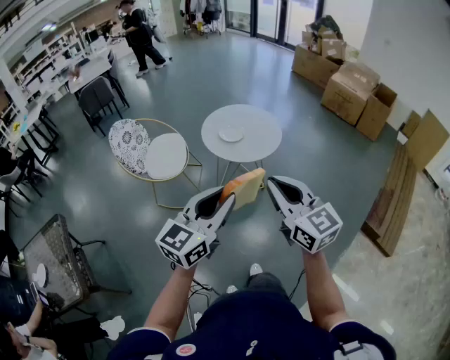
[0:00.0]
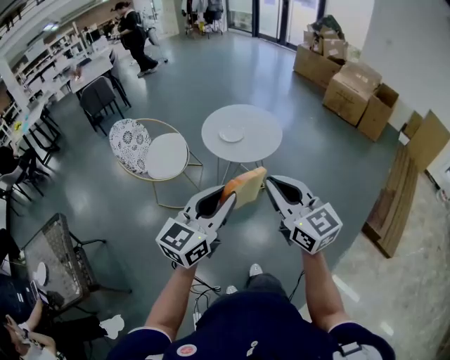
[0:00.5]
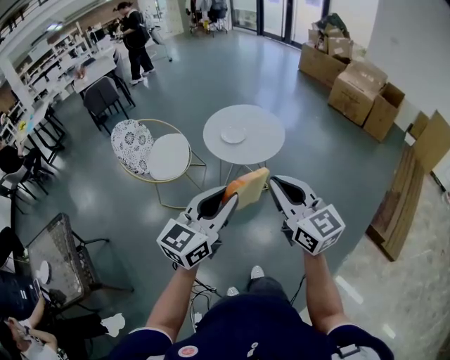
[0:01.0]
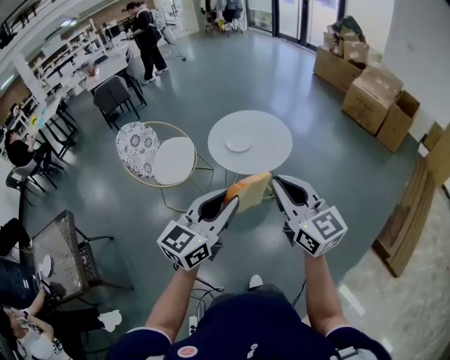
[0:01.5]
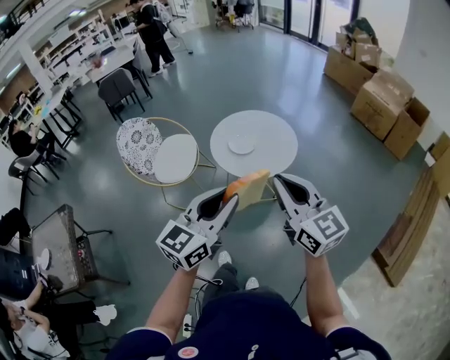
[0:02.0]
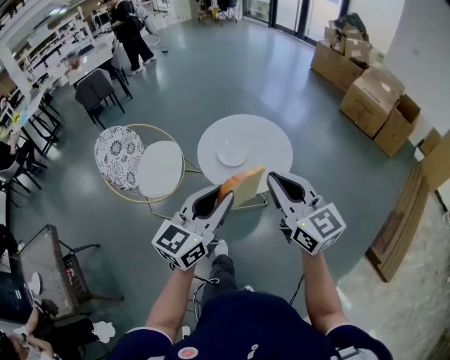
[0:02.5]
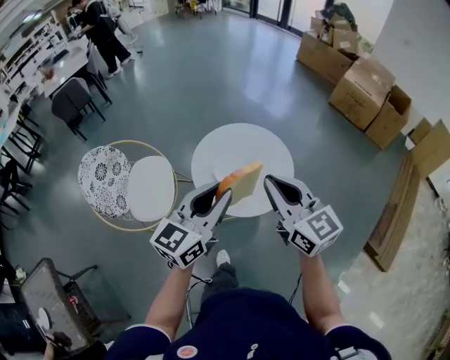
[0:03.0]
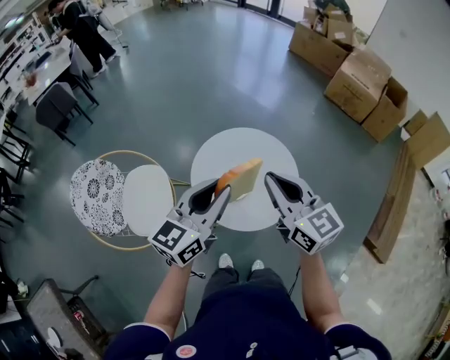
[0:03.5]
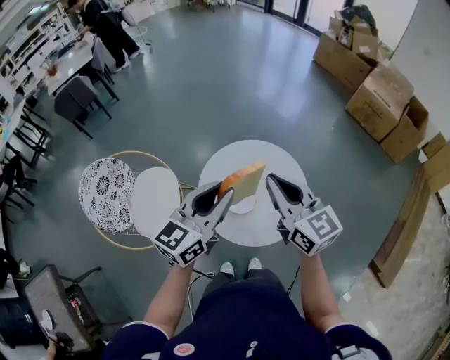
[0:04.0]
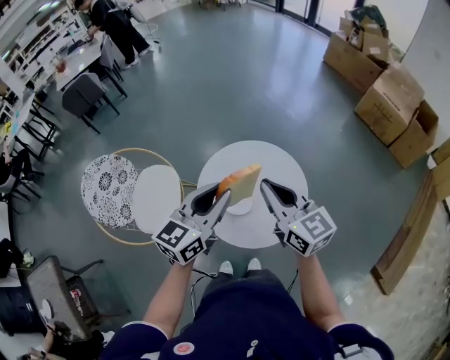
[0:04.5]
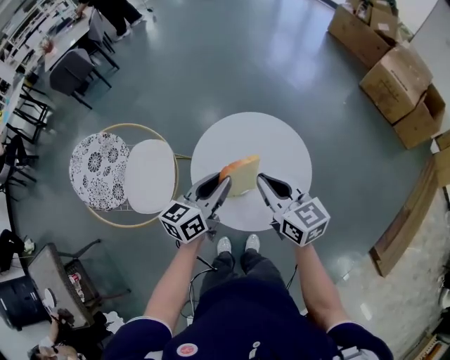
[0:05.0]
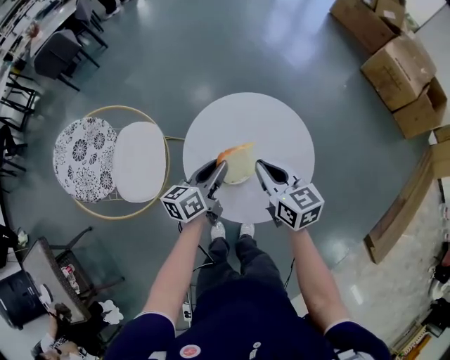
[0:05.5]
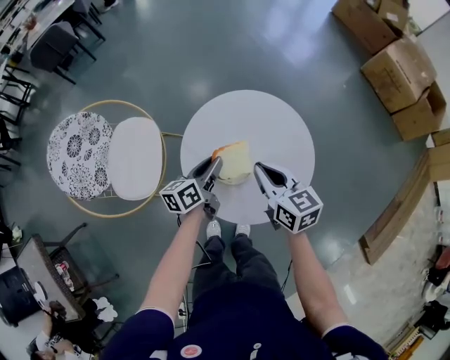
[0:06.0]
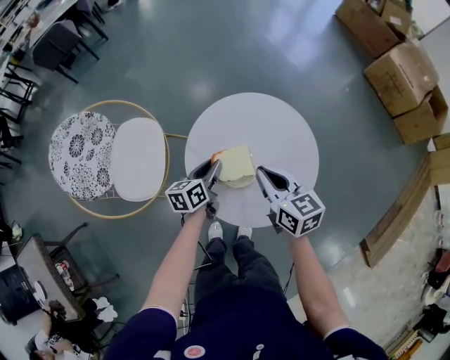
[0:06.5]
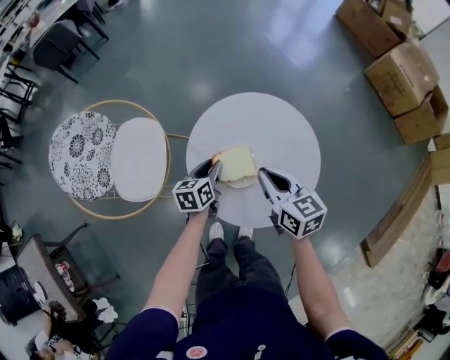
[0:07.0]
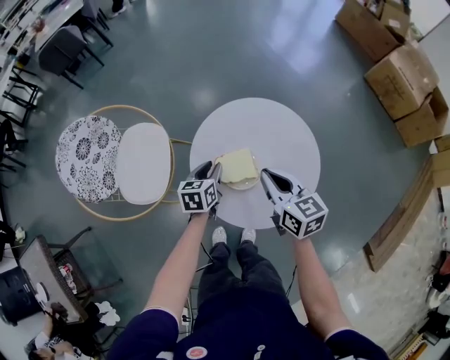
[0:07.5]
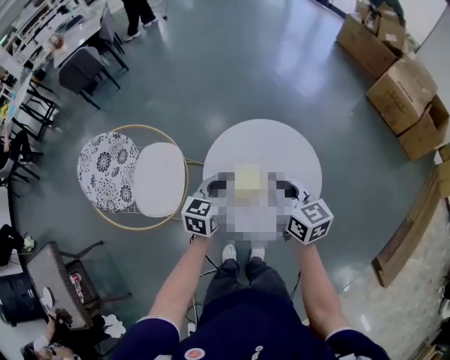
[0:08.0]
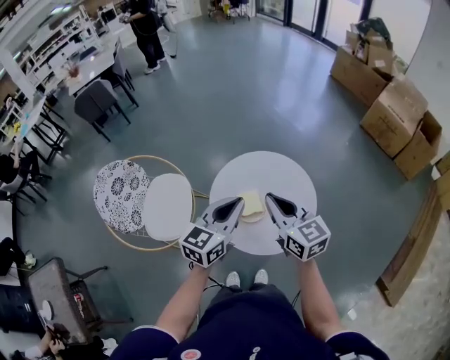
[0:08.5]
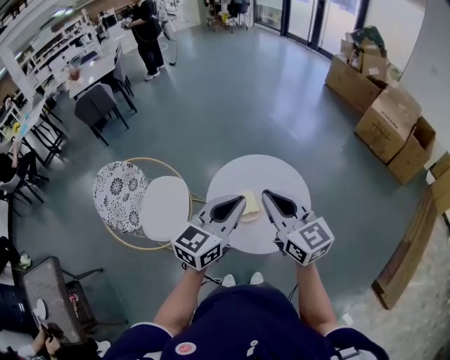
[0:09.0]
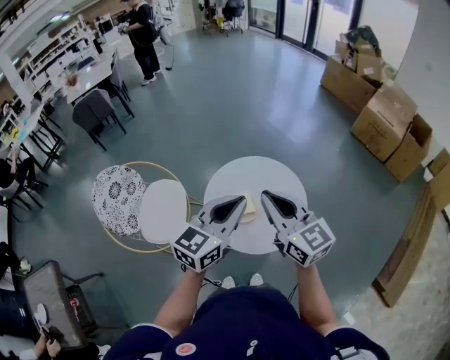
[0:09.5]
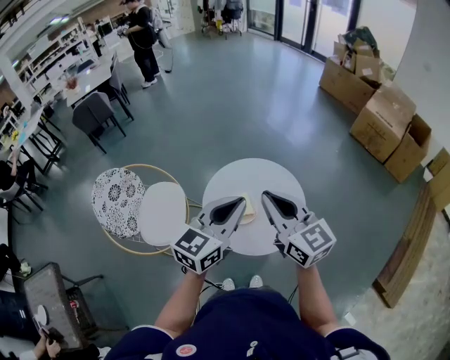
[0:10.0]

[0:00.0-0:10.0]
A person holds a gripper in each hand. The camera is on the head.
0:00.0 to 0:02.0: The two grippers go some 15 cm forward and to the right.
0:02.0 to 0:04.0: The two grippers go about 40 cm forward.
0:04.0 to 0:06.0: The two grippers go some 25 cm downward. The left gripper rotates some 40 degrees; the right gripper turns by some 30 degrees.
0:06.0 to 0:08.0: Both grippers travel together upward, approximately 10 cm. The left gripper swivels about 30 degrees.
0:08.0 to 0:10.0: Both grippers move upward and backward, some 20 cm. The left gripper rotates about 20 degrees; the right gripper swivels roughly 20 degrees.

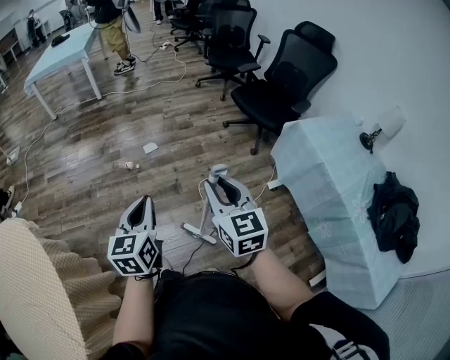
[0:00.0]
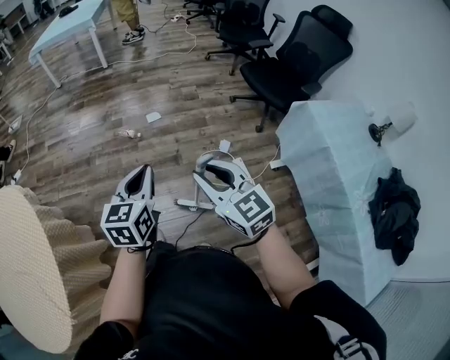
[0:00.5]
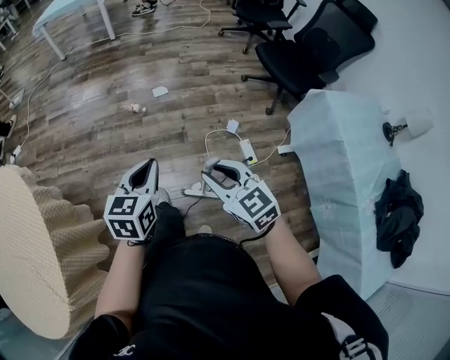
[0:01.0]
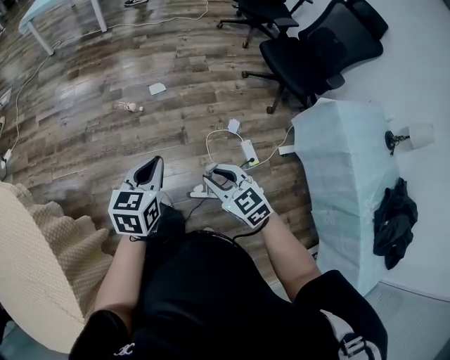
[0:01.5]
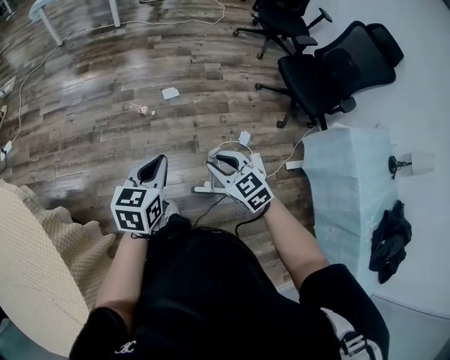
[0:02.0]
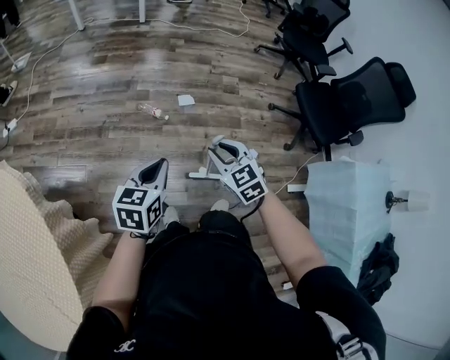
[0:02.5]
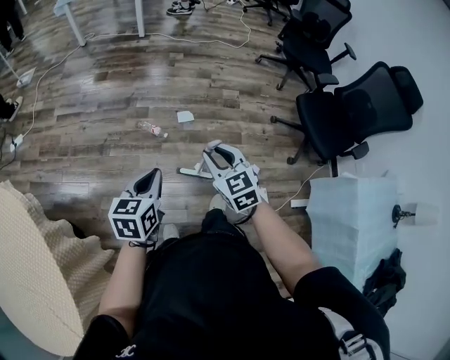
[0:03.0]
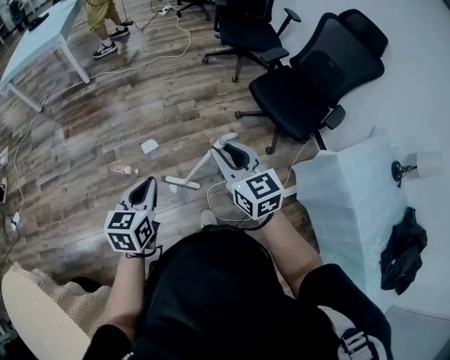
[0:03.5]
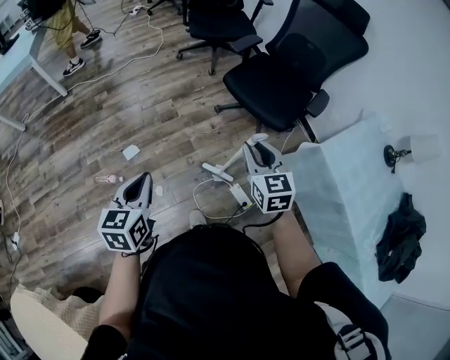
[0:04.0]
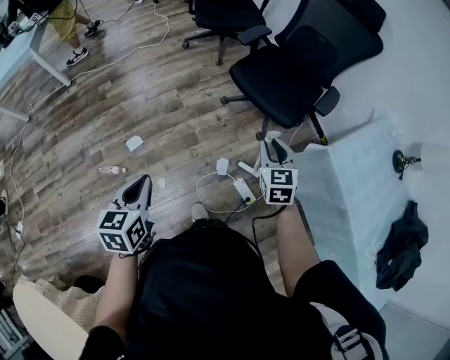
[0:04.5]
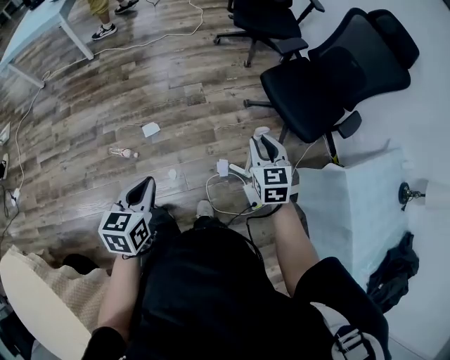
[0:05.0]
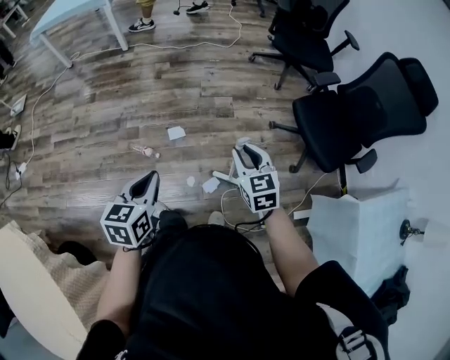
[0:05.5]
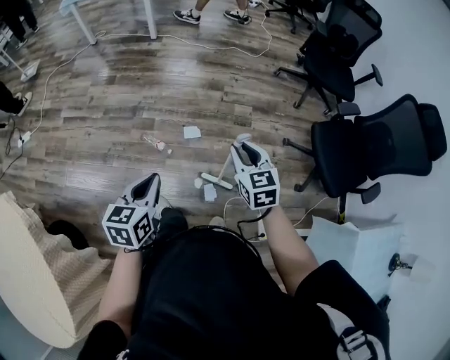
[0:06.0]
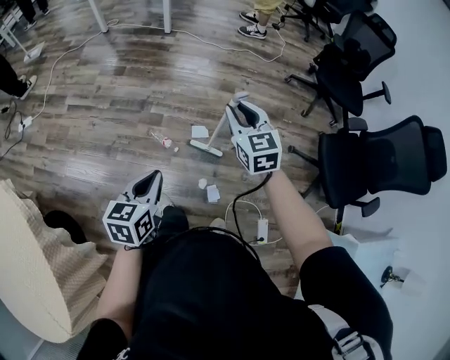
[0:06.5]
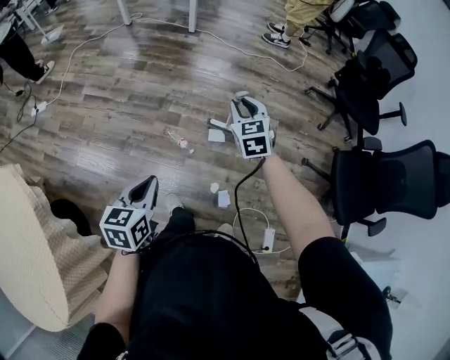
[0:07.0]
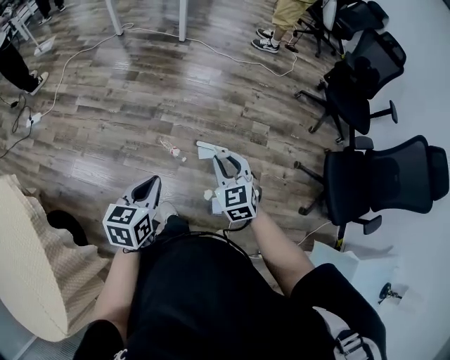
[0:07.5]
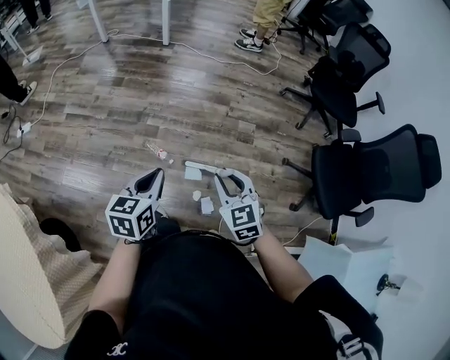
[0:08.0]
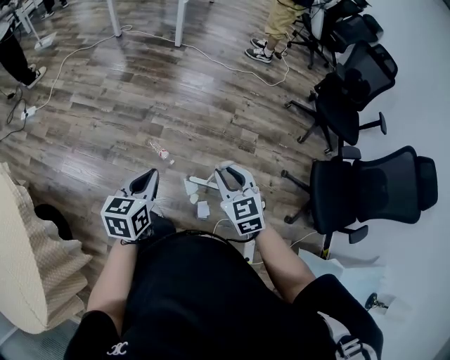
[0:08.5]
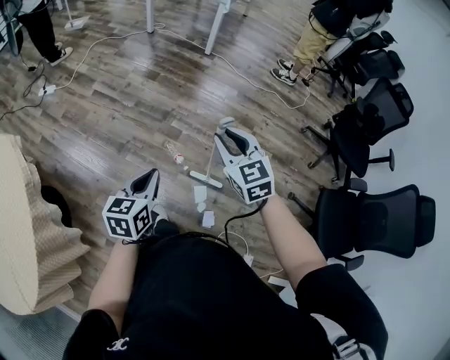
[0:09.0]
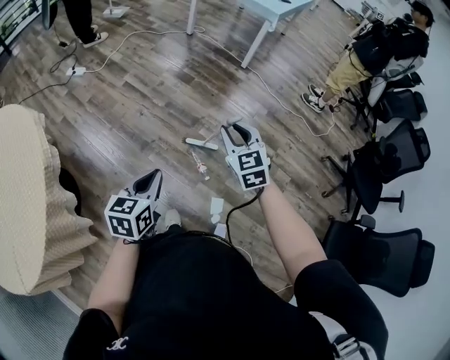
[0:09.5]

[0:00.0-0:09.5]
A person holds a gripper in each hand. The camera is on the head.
0:00.0 to 0:02.0: The right gripper goes roughly 30 cm downward, forward and to the left, and swivels some 40 degrees, while the left gripper is displaced forward, downward and to the left by approximately 25 cm.
0:02.0 to 0:04.0: The left gripper changes place by approximately 35 cm; the right gripper ends up approximately 50 cm from where it was, and swivels about 50 degrees.
0:04.0 to 0:05.5: The right gripper changes place by about 30 cm, and changes its angle by approximately 30 degrees. The left gripper ends up approximately 20 cm from where it was.
0:05.5 to 0:07.5: The two grippers go approximately 20 cm to the left. The right gripper changes its angle by about 30 degrees.
0:07.5 to 0:09.5: The left gripper goes approximately 15 cm to the left, and turns by some 20 degrees. The right gripper heads to the left and forward, covering about 25 cm, and rotates approximately 20 degrees.

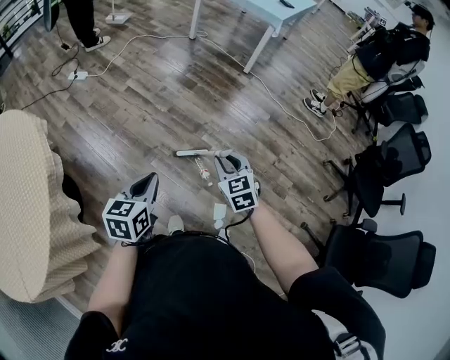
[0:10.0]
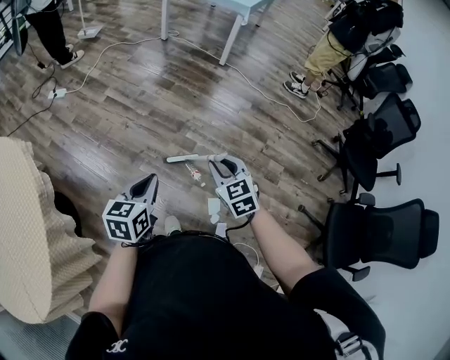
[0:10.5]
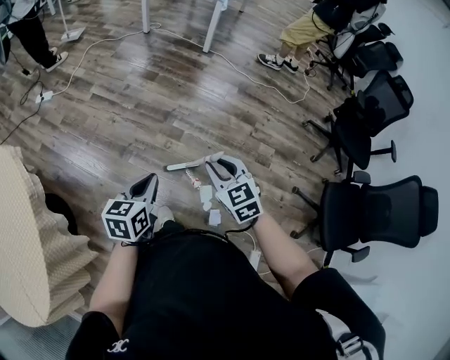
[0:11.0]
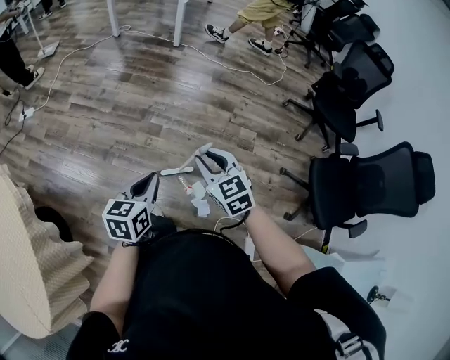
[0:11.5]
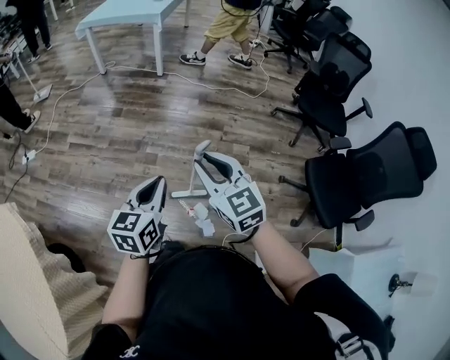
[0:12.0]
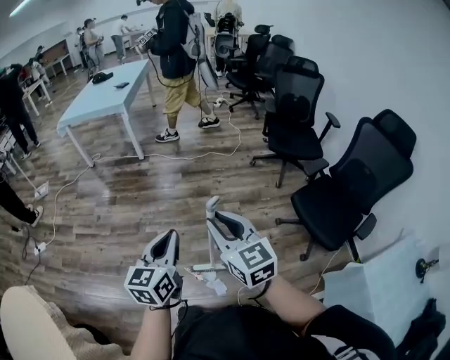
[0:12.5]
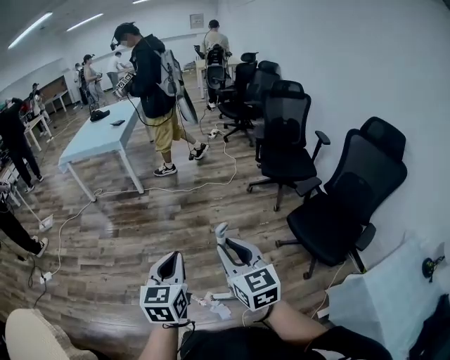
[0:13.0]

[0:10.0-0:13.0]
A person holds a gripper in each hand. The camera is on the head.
0:10.0 to 0:11.5: The right gripper goes approximately 20 cm to the right and backward. The left gripper travels to the right by approximately 20 cm, and rotates roughly 20 degrees.
0:11.5 to 0:13.0: The two grippers go some 35 cm to the right and upward. The right gripper rotates approximately 40 degrees, while the left gripper rotates approximately 30 degrees.

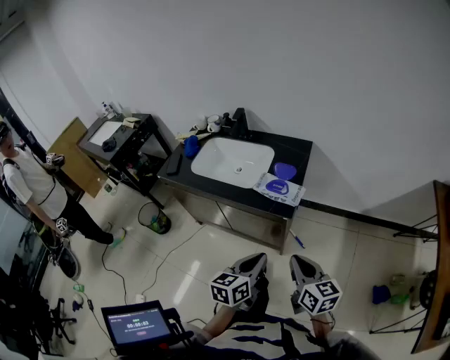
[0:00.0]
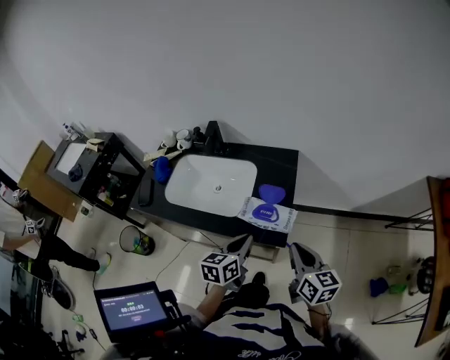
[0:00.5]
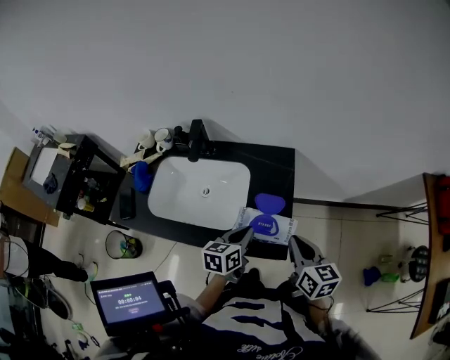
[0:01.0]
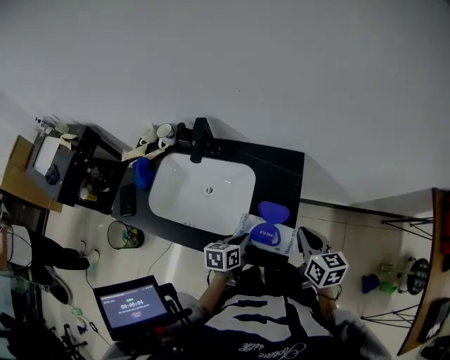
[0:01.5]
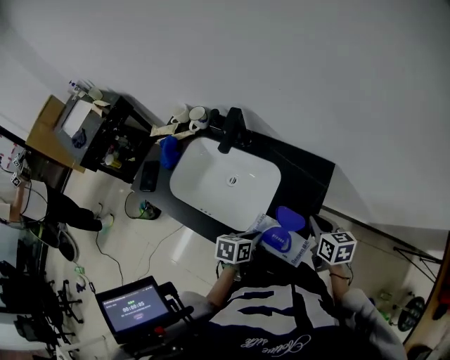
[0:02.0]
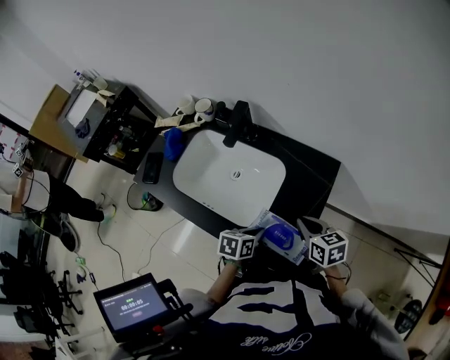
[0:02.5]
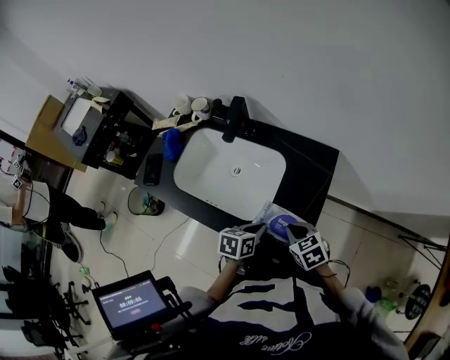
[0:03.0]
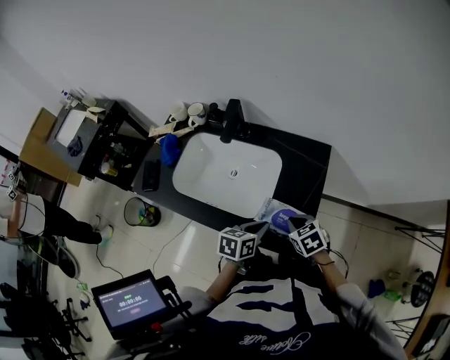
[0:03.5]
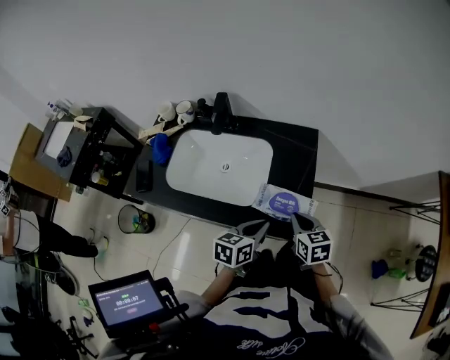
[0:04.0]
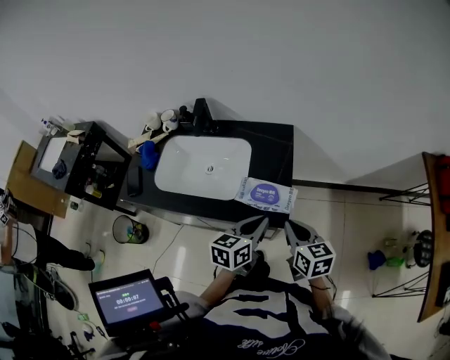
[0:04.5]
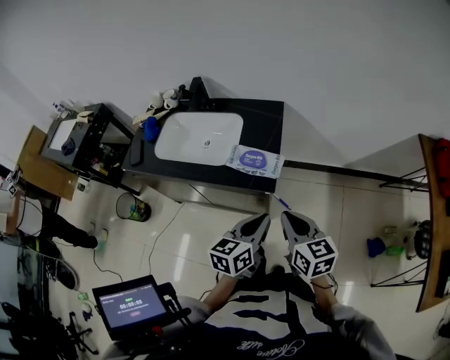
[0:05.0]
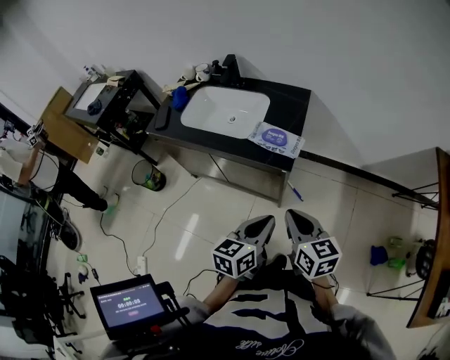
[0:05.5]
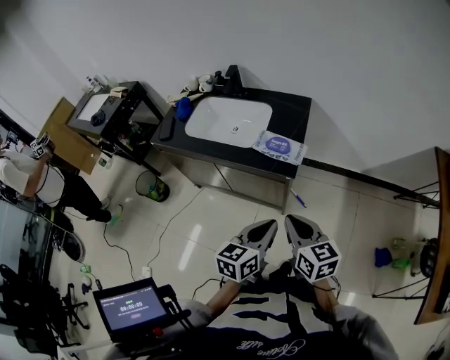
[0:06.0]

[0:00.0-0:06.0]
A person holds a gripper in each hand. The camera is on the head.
0:00.0 to 0:02.0: The right gripper is displaced forward by roughly 40 cm, and rotates some 20 degrees, while the left gripper travels forward and downward by roughly 40 cm, and turns by some 30 degrees.
0:02.0 to 0:04.0: The left gripper goes about 10 cm upward and backward, and swivels some 20 degrees. The right gripper goes some 15 cm backward and to the left.
0:04.0 to 0:06.0: The left gripper heads backward, covering approximately 25 cm. Meanwhile the right gripper moves backward and upward, roughly 30 cm, and swivels approximately 20 degrees.
